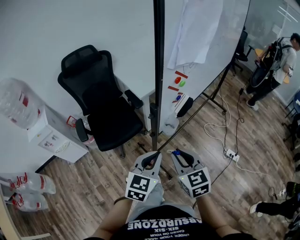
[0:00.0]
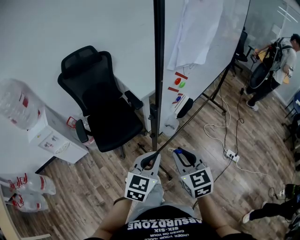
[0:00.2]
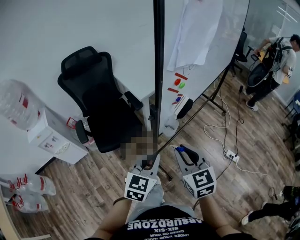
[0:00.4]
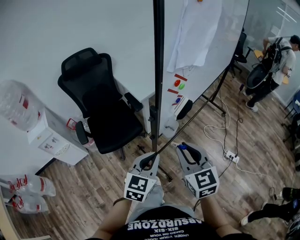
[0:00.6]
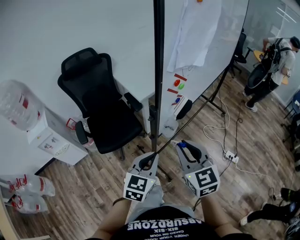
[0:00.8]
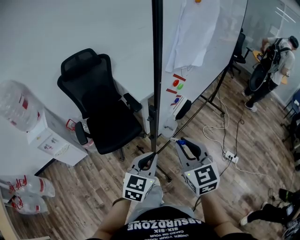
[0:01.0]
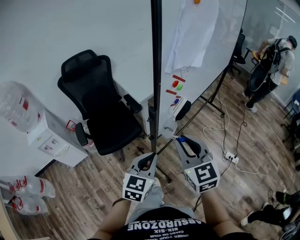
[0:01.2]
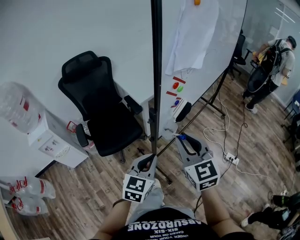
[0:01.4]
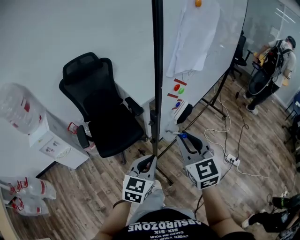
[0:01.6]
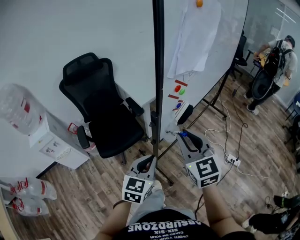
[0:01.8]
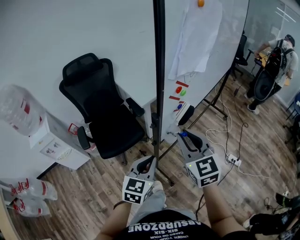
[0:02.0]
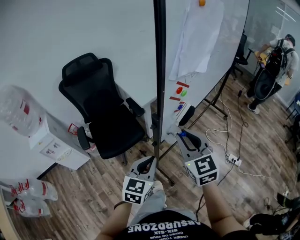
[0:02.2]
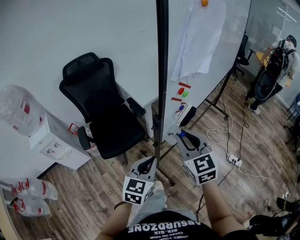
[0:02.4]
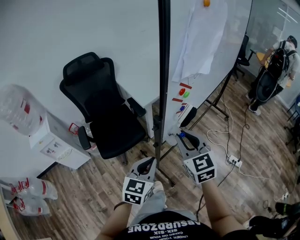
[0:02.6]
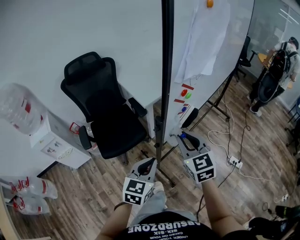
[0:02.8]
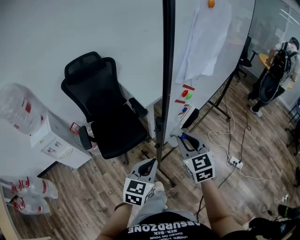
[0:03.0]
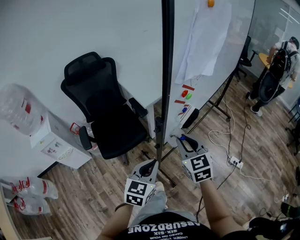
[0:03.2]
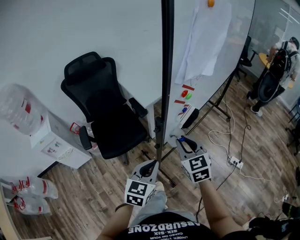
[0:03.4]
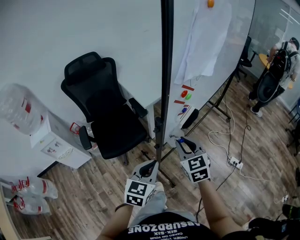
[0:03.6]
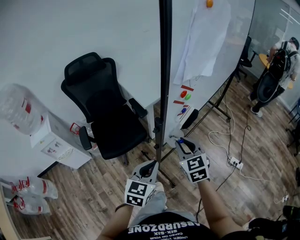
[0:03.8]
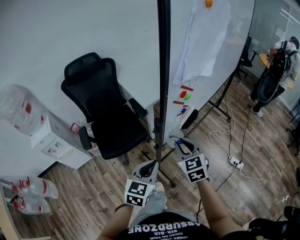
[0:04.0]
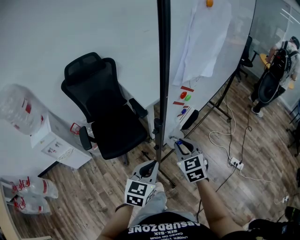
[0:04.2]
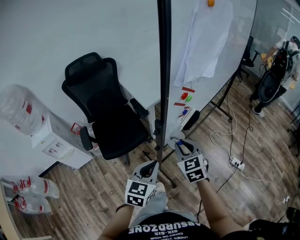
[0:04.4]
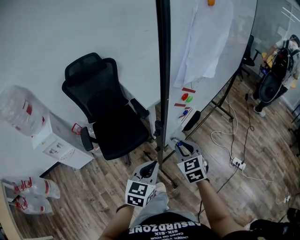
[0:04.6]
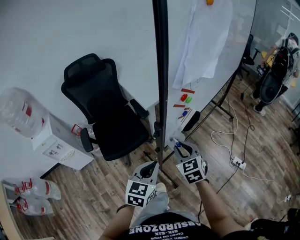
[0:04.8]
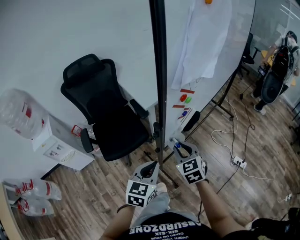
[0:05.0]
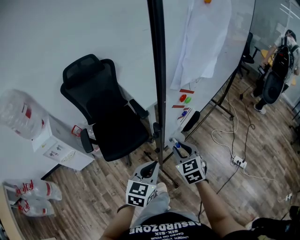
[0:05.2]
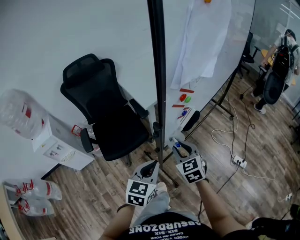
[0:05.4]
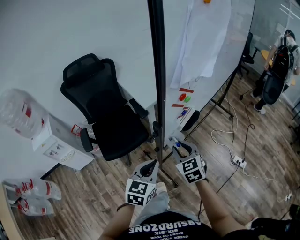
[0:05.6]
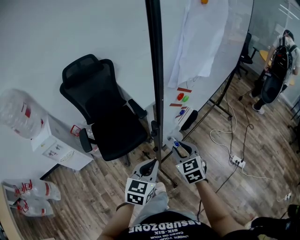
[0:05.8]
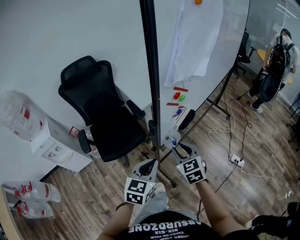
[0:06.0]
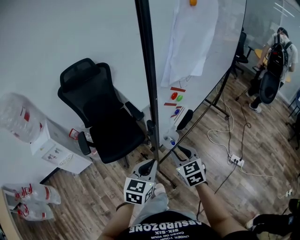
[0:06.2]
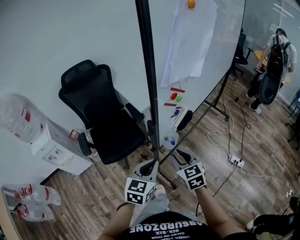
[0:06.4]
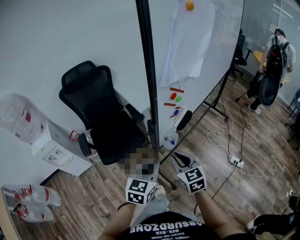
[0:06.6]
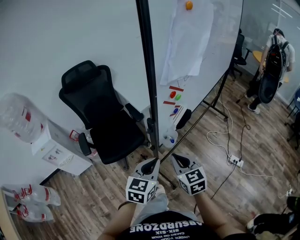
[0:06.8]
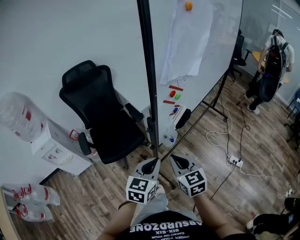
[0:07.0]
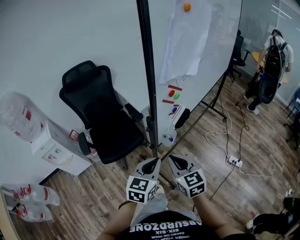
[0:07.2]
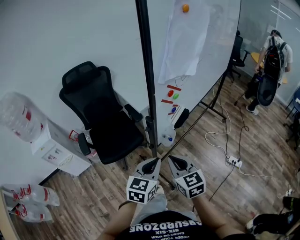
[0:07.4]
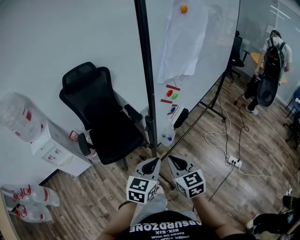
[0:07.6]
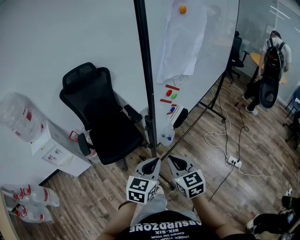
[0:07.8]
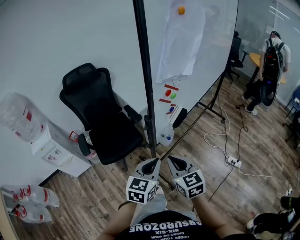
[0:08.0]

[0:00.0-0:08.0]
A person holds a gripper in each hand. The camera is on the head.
0:00.0 to 0:01.6: The right gripper heads upward and forward, covering about 10 cm.
0:01.6 to 0:03.2: The right gripper shifts some 10 cm downward and forward.
0:03.2 to 0:04.8: The right gripper shifts approximately 5 cm downward.
0:04.8 to 0:06.4: The right gripper goes approximately 5 cm backward.
0:06.4 to 0:08.0: The right gripper goes approximately 10 cm backward and upward, and closes up.

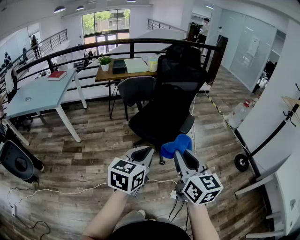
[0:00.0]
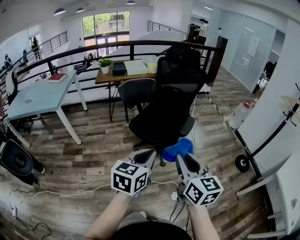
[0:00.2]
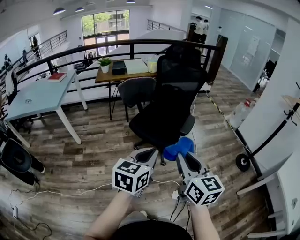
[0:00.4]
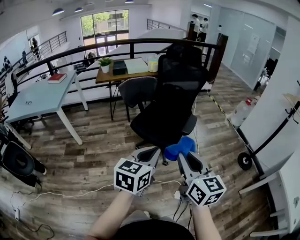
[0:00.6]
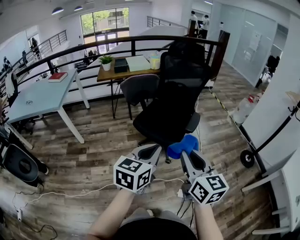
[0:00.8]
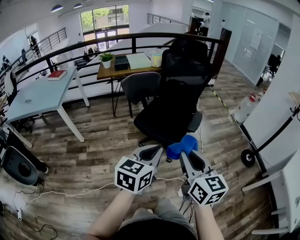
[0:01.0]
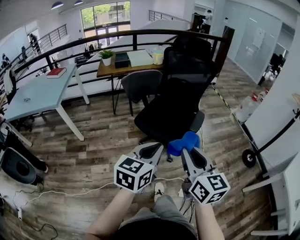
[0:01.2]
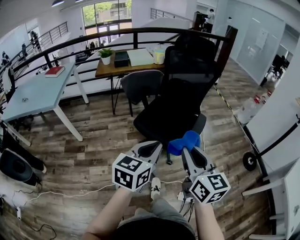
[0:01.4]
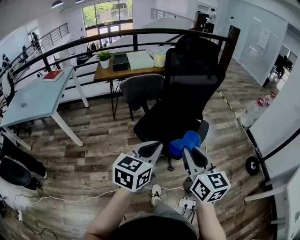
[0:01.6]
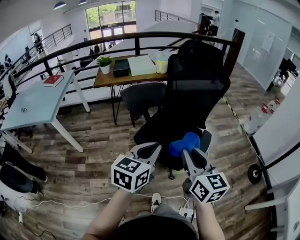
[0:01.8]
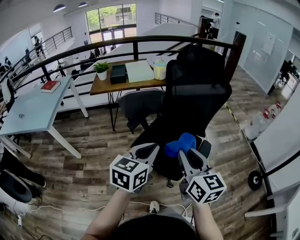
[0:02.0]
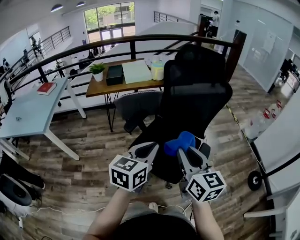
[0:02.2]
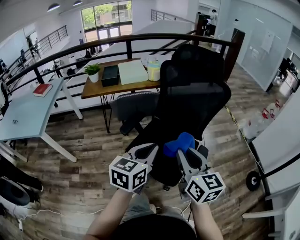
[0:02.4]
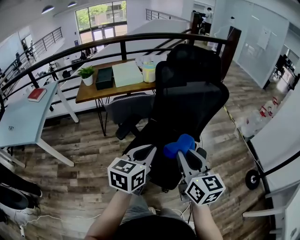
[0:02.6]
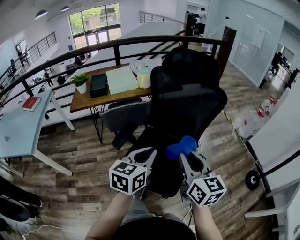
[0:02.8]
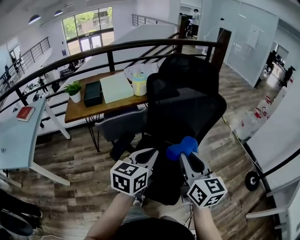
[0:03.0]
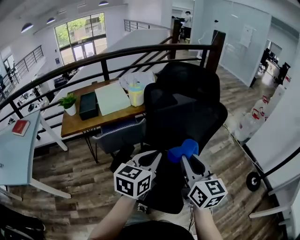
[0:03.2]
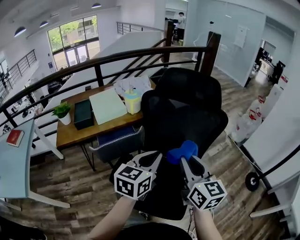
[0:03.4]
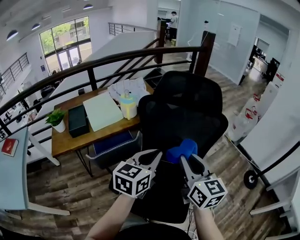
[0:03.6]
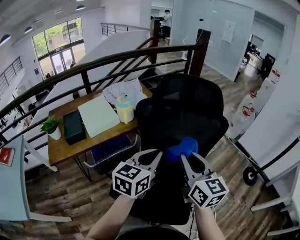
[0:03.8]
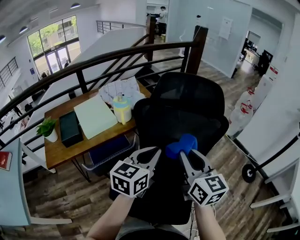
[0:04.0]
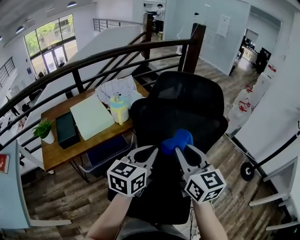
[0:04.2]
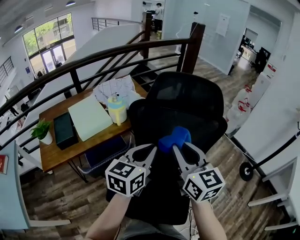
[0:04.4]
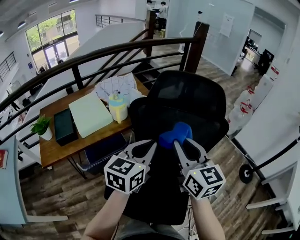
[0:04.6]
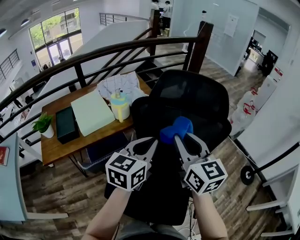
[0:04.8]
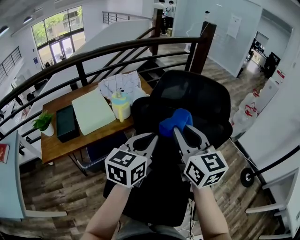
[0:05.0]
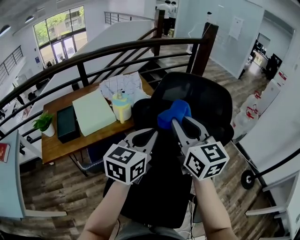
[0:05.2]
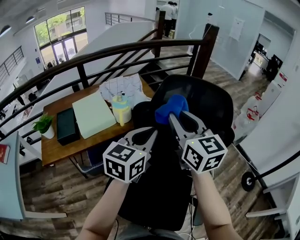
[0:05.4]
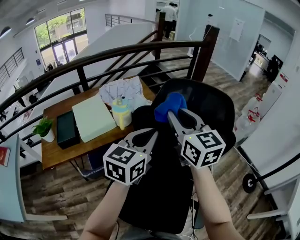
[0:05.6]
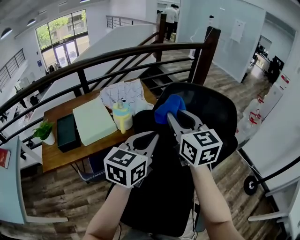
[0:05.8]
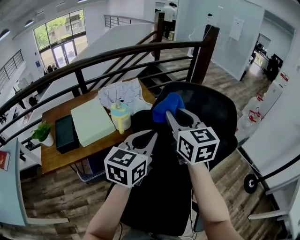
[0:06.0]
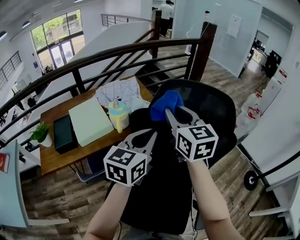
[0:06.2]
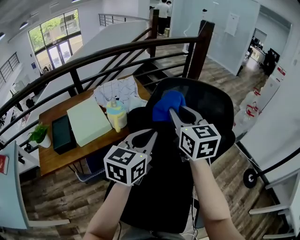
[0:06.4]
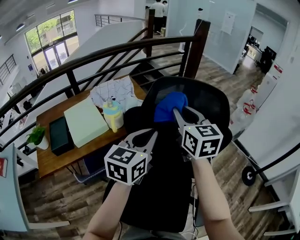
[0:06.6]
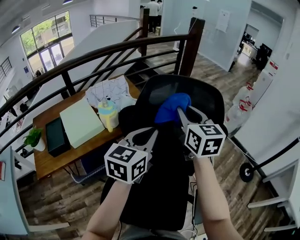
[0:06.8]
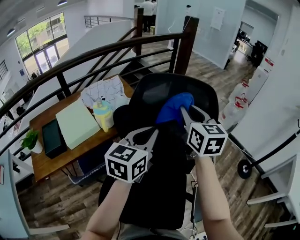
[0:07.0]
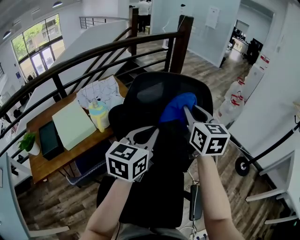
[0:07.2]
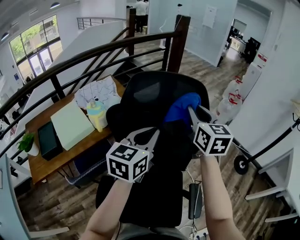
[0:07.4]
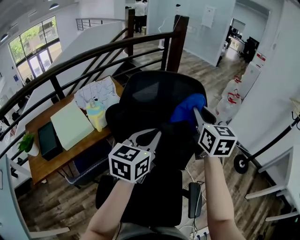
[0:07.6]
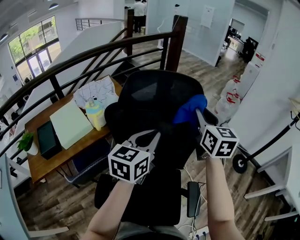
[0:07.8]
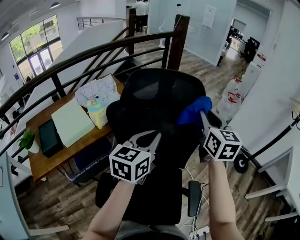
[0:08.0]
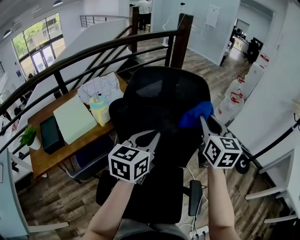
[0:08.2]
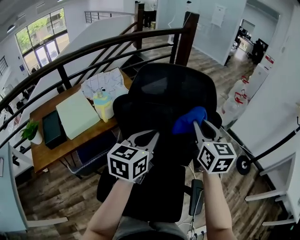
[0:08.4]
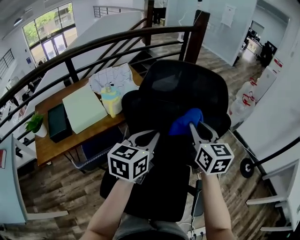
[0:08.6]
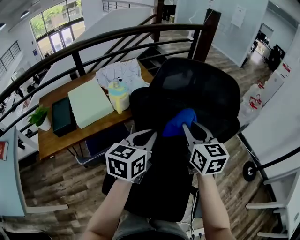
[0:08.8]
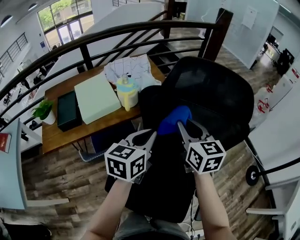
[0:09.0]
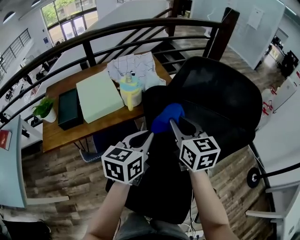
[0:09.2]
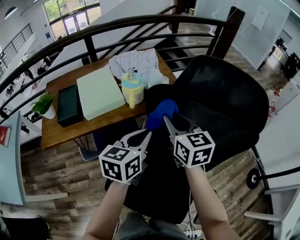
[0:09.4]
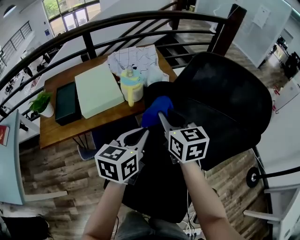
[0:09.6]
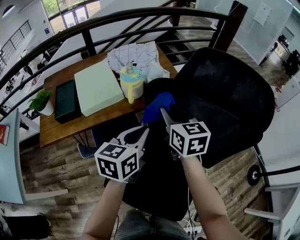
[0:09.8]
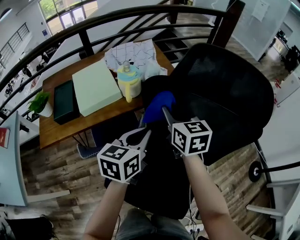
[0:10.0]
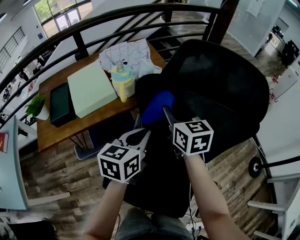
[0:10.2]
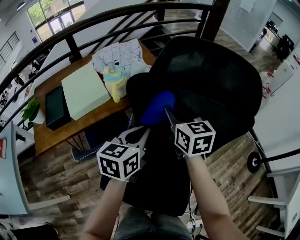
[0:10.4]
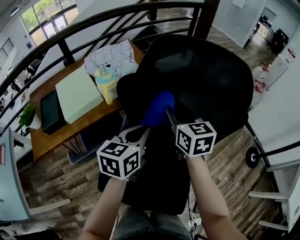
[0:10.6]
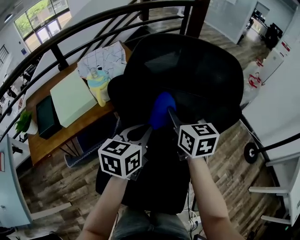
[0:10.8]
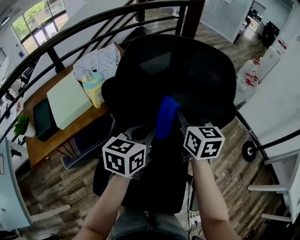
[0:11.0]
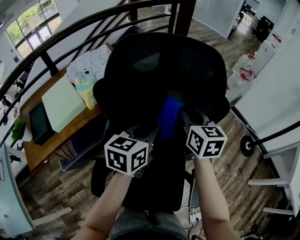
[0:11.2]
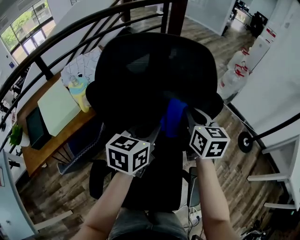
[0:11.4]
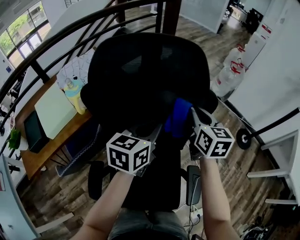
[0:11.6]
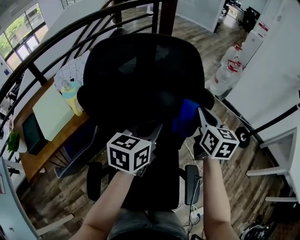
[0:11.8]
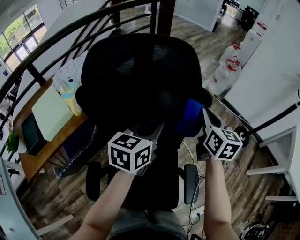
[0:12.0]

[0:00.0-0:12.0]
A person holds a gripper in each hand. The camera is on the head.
0:00.0 to 0:01.6: The grippers both shift forward by about 20 cm.
0:01.6 to 0:03.0: Both grippers travel together forward, roughly 35 cm.
0:03.0 to 0:04.4: The right gripper shifts approximately 25 cm forward and to the left; the left gripper goes approximately 20 cm forward.
0:04.4 to 0:06.0: The left gripper goes some 10 cm forward; the right gripper moves forward, some 20 cm.
0:06.0 to 0:07.6: The right gripper goes roughly 20 cm to the right, and rotates approximately 20 degrees, while the left gripper is displaced to the right by roughly 10 cm.
0:07.6 to 0:09.0: The grippers both shift to the left and downward by approximately 20 cm. The right gripper changes its angle by approximately 20 degrees.
0:09.0 to 0:10.4: The right gripper heads forward and downward, covering approximately 10 cm, and goes to the left and returns, roughly 10 cm each way, while the left gripper goes approximately 5 cm downward.
0:10.4 to 0:12.0: The left gripper shifts by some 20 cm, and rotates approximately 20 degrees. Meanwhile the right gripper moves about 35 cm, and turns by roughly 40 degrees.

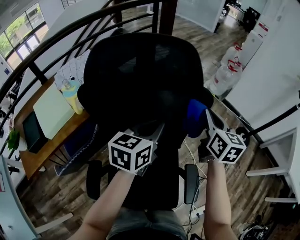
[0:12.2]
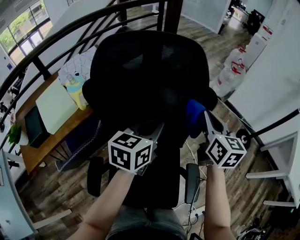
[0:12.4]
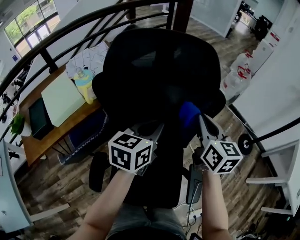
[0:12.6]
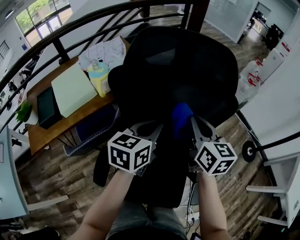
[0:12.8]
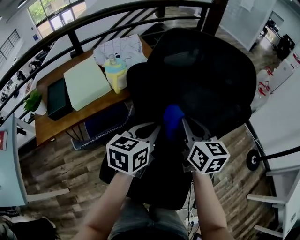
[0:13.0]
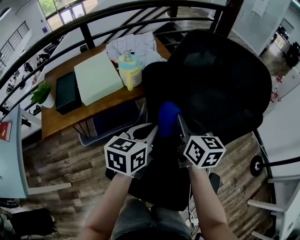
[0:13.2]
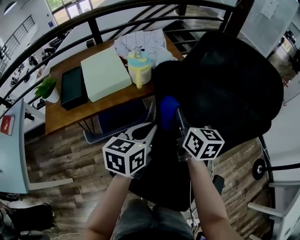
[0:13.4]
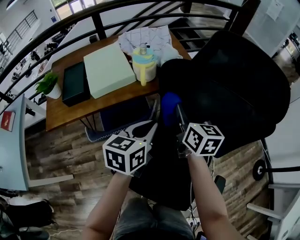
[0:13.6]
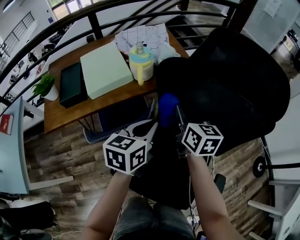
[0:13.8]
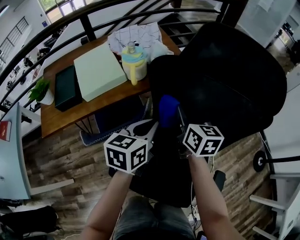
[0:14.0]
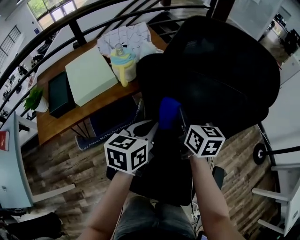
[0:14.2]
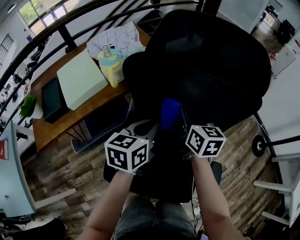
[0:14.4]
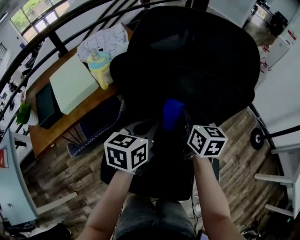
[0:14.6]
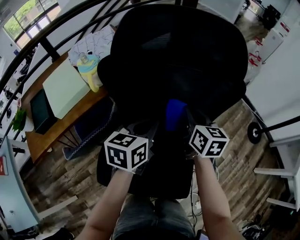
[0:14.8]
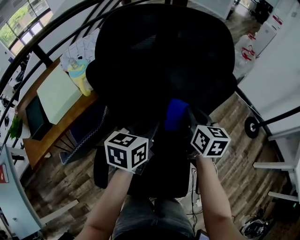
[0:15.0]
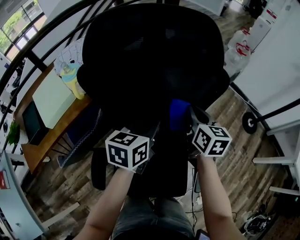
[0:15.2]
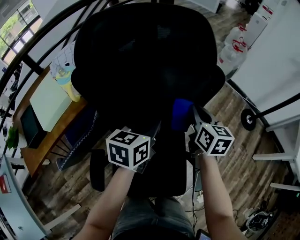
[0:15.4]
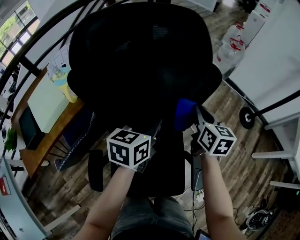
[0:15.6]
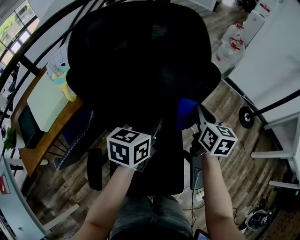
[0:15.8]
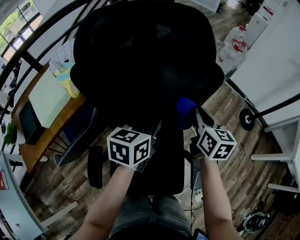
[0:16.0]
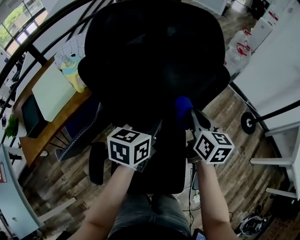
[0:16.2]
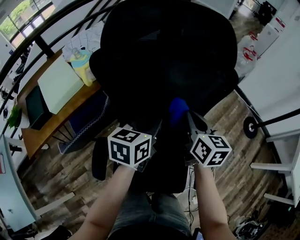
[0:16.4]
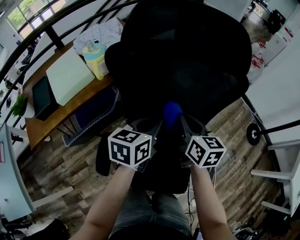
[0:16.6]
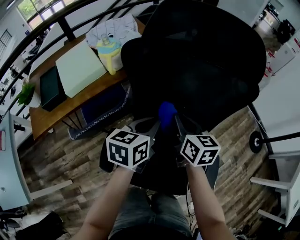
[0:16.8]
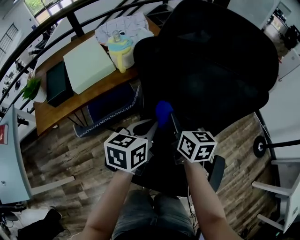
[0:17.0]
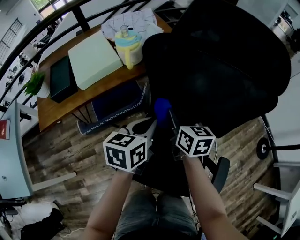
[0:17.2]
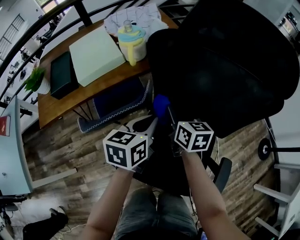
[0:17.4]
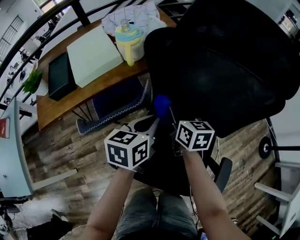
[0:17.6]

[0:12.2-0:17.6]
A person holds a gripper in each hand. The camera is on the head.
0:12.2 to 0:13.6: The left gripper changes place by some 30 cm, and turns by some 30 degrees, while the right gripper moves roughly 40 cm, and rotates approximately 40 degrees.
0:13.6 to 0:15.0: The two grippers go approximately 20 cm to the right. The right gripper changes its angle by about 30 degrees. The left gripper rotates approximately 20 degrees.
0:15.0 to 0:16.2: The right gripper heads to the right, covering roughly 5 cm.
0:16.2 to 0:17.6: The right gripper shifts by approximately 30 cm, and swivels roughly 30 degrees. The left gripper moves approximately 20 cm, and changes its angle by about 20 degrees.
